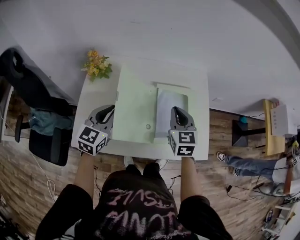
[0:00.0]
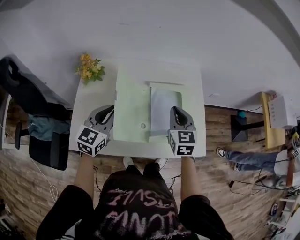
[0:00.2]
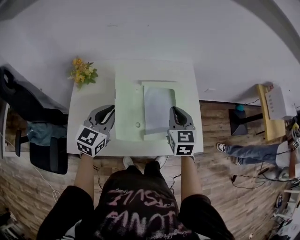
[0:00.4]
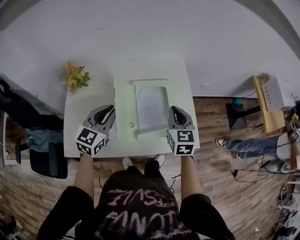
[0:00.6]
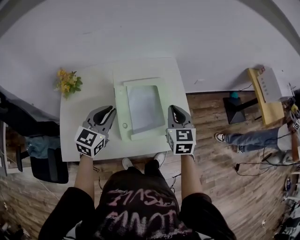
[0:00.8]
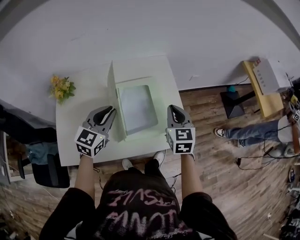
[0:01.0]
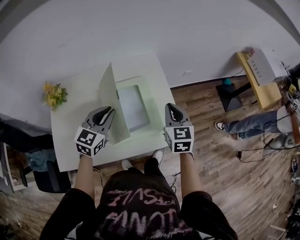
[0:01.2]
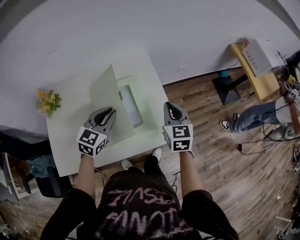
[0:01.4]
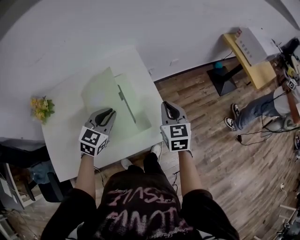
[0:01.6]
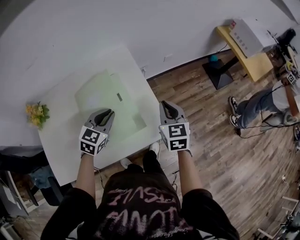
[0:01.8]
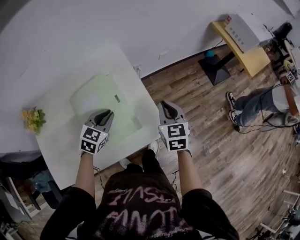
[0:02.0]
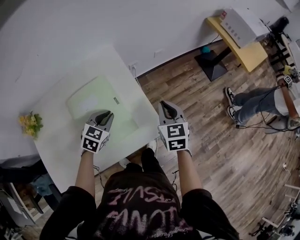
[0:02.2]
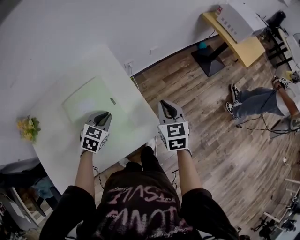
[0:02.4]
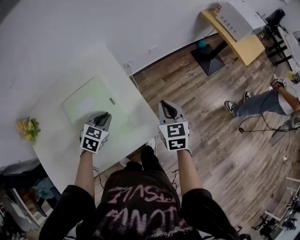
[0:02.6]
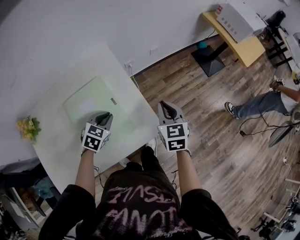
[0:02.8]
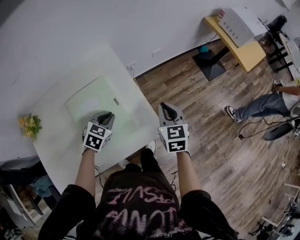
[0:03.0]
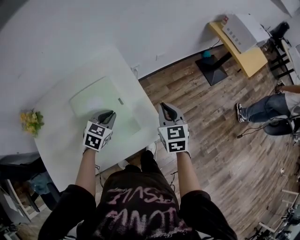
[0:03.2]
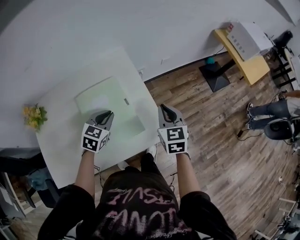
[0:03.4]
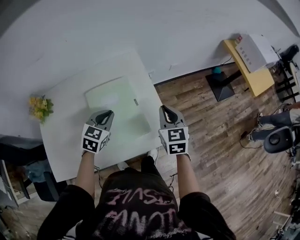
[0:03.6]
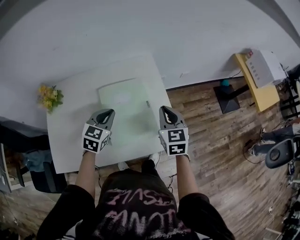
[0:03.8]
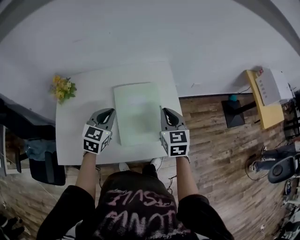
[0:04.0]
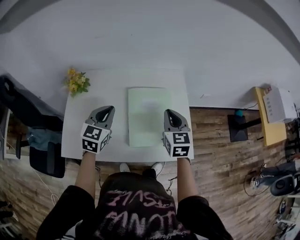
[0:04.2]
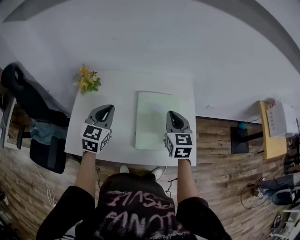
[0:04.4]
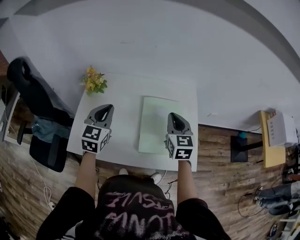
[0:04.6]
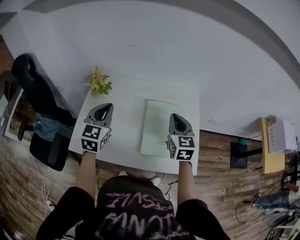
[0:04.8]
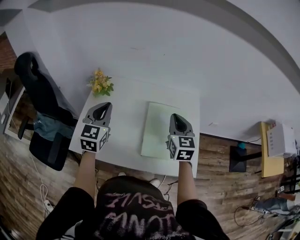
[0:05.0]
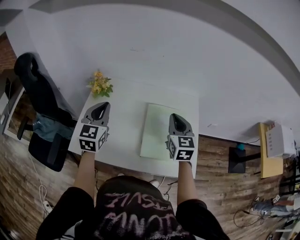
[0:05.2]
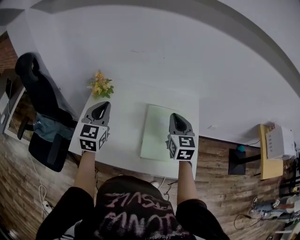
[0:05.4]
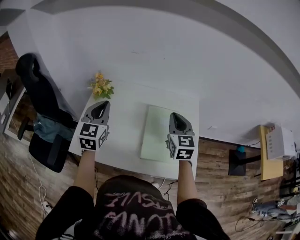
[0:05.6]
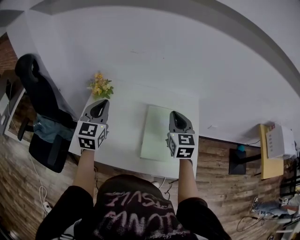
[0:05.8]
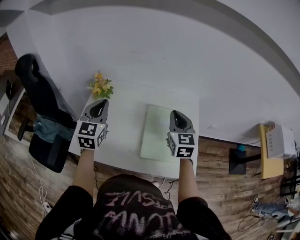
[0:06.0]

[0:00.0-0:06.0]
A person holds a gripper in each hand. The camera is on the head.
0.0 to 1.6 s: Both grippers move to the right, some 30 cm. The left gripper rotates some 30 degrees. Meanwhile the right gripper changes its angle by about 20 degrees.
1.6 to 3.0 s: The right gripper is displaced to the right by roughly 10 cm. The left gripper is displaced downward and to the right by some 10 cm, and rotates about 20 degrees.
3.0 to 4.4 s: The left gripper changes place by about 35 cm, and rotates about 50 degrees, while the right gripper shifts by some 30 cm, and rotates roughly 30 degrees.
4.4 to 6.0 s: The right gripper travels upward by about 5 cm. The left gripper heads to the left and upward, covering about 10 cm.

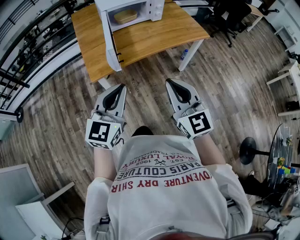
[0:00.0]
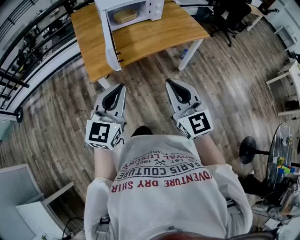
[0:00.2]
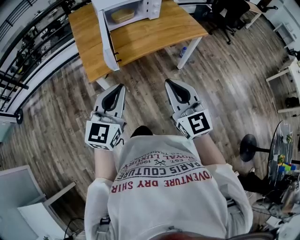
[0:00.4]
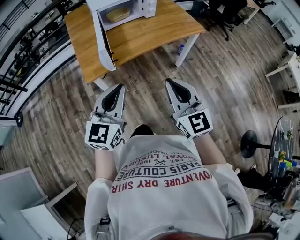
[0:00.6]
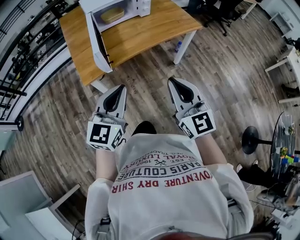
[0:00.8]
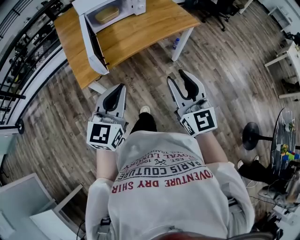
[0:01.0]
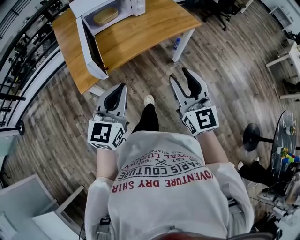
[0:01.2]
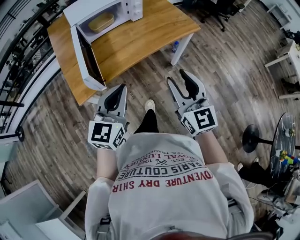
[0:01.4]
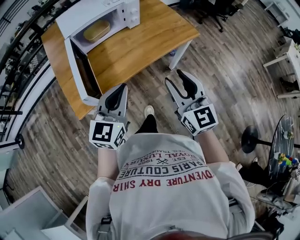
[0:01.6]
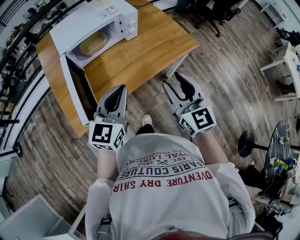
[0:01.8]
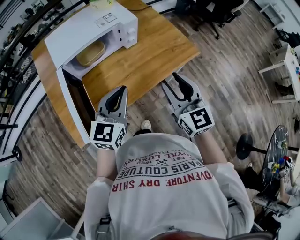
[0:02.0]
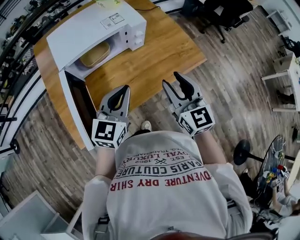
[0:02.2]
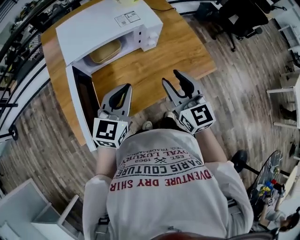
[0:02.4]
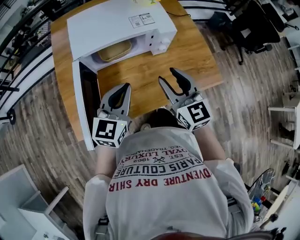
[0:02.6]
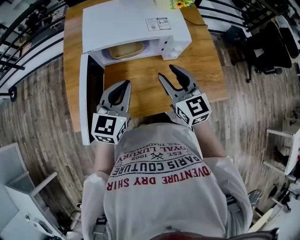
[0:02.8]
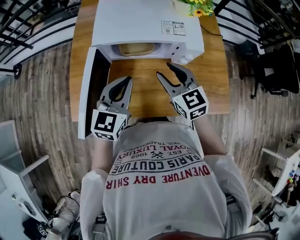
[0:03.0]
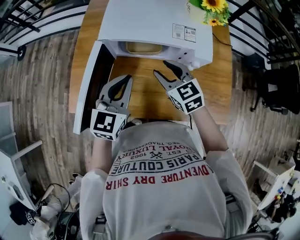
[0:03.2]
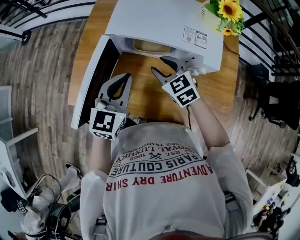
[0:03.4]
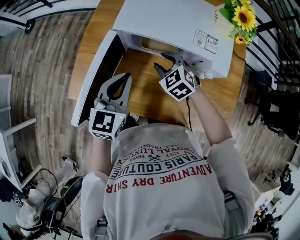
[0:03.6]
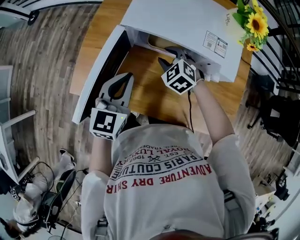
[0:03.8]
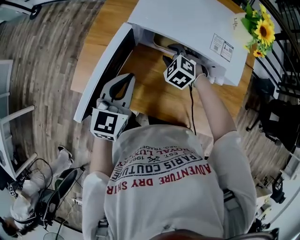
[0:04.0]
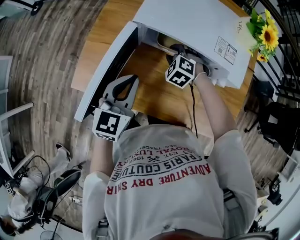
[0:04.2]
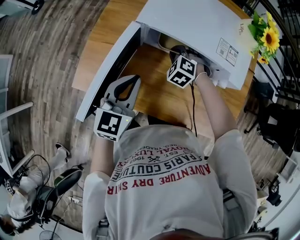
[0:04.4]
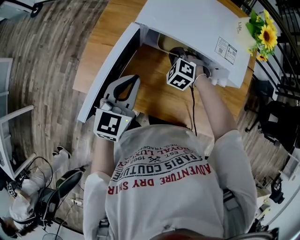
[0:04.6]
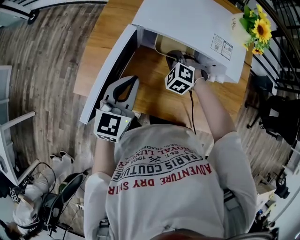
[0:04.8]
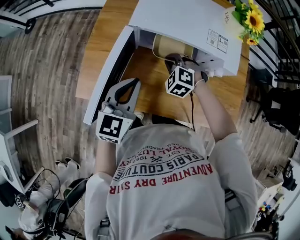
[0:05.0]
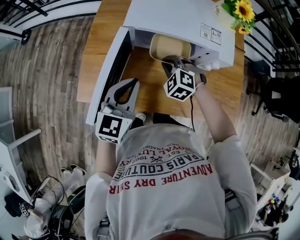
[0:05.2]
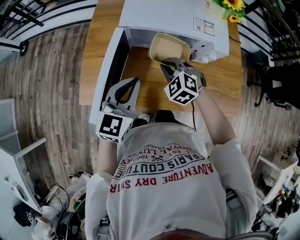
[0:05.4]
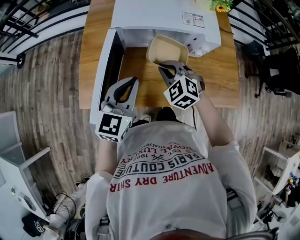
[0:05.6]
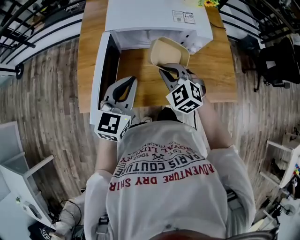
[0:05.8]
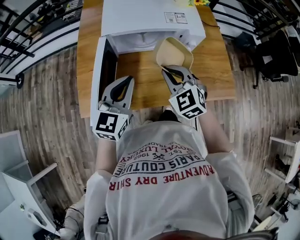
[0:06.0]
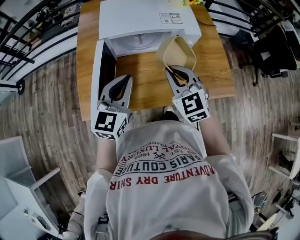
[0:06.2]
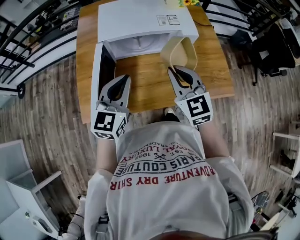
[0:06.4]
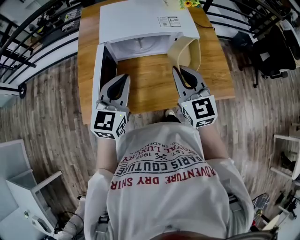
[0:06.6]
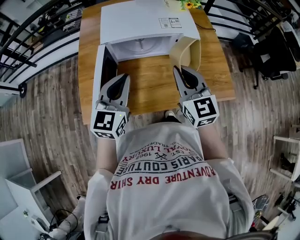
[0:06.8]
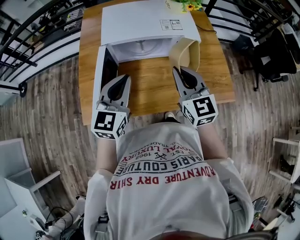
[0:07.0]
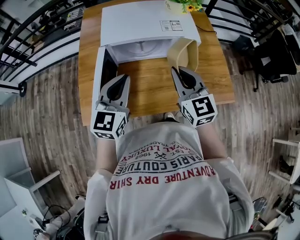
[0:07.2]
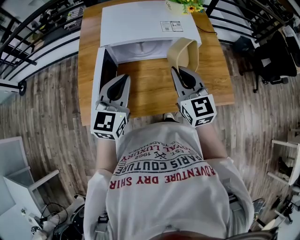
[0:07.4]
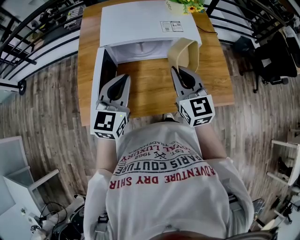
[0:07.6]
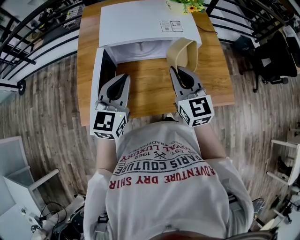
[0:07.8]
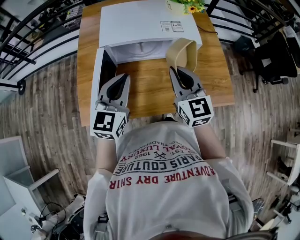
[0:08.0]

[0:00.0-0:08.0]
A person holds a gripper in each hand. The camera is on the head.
0.0 to 1.6 s: The right gripper shifts some 20 cm forward and to the right, and opens up, while the left gripper is displaced forward by roughly 20 cm.
1.6 to 3.2 s: The right gripper shifts by approximately 40 cm, and changes its angle by some 60 degrees. Meanwhile the left gripper moves some 30 cm, and turns by about 40 degrees.
3.2 to 4.8 s: The right gripper is displaced downward, forward and to the left by approximately 15 cm, rolls counterclockwise, seen from behind, by approximately 50 degrees, and closes its fingers. Meanwhile the left gripper is displaced to the left by roughly 5 cm.
4.8 to 6.4 s: The right gripper goes some 30 cm upward, backward and to the right, and angles its fingers upward, by roughly 40 degrees, while the left gripper travels upward by approximately 5 cm, and rotates some 20 degrees.
6.4 to 8.0 s: The grippers move only a little.

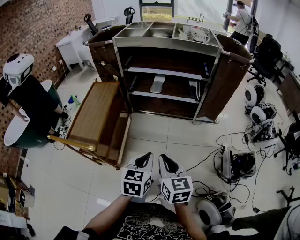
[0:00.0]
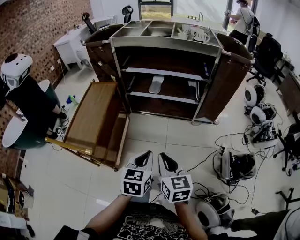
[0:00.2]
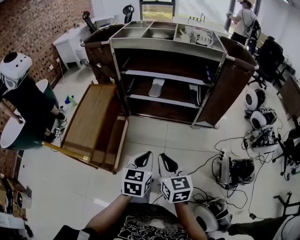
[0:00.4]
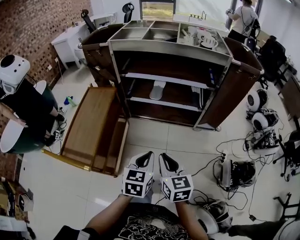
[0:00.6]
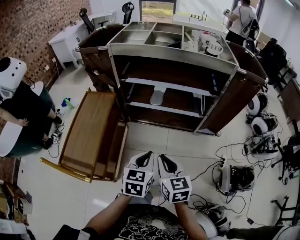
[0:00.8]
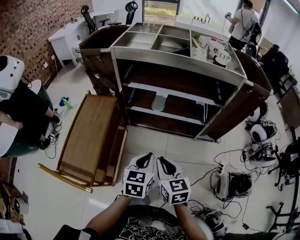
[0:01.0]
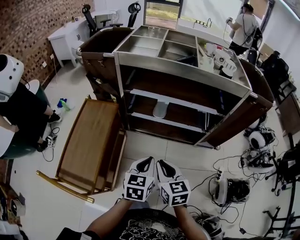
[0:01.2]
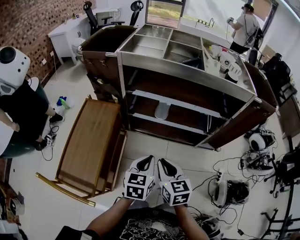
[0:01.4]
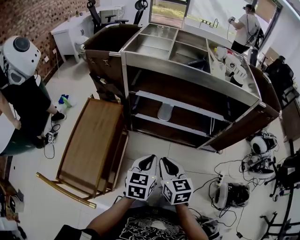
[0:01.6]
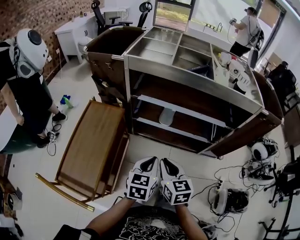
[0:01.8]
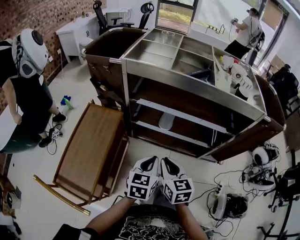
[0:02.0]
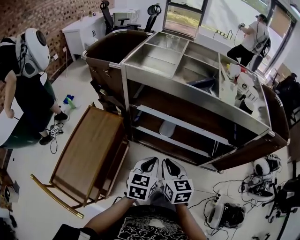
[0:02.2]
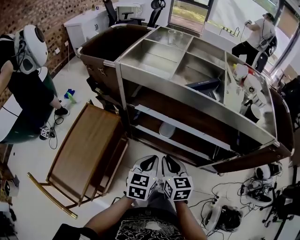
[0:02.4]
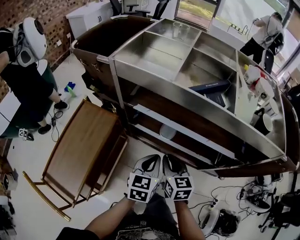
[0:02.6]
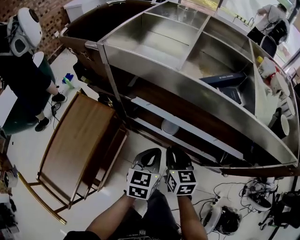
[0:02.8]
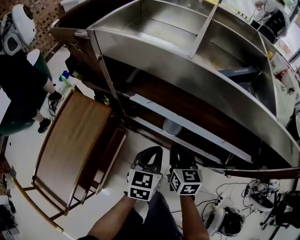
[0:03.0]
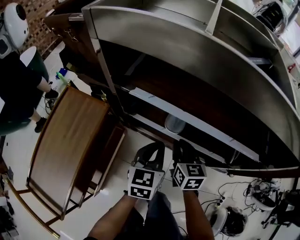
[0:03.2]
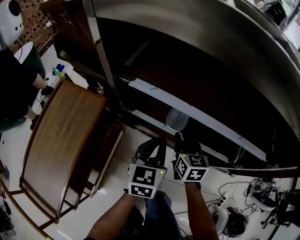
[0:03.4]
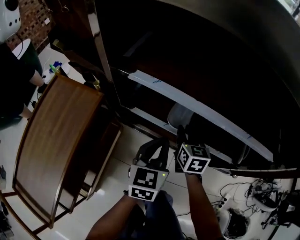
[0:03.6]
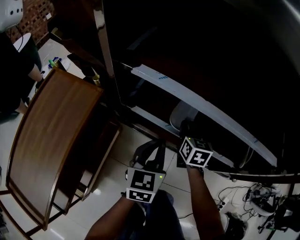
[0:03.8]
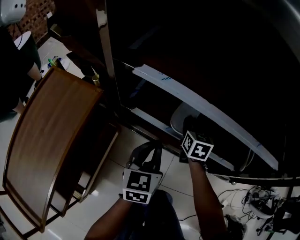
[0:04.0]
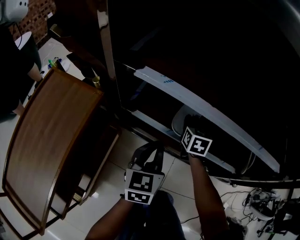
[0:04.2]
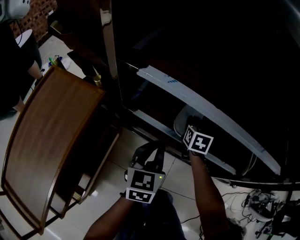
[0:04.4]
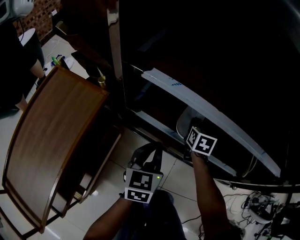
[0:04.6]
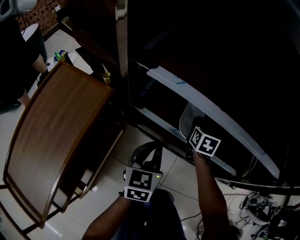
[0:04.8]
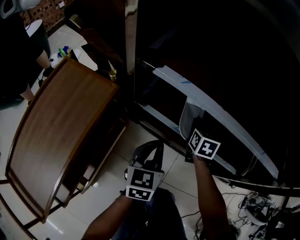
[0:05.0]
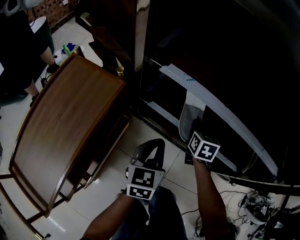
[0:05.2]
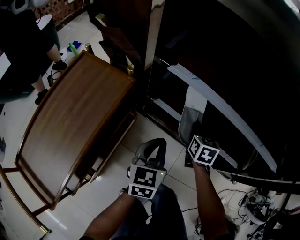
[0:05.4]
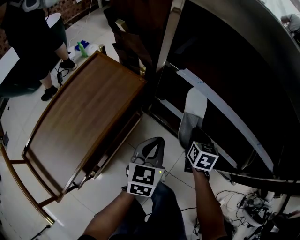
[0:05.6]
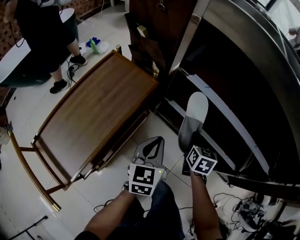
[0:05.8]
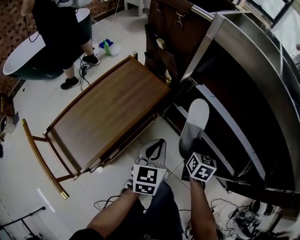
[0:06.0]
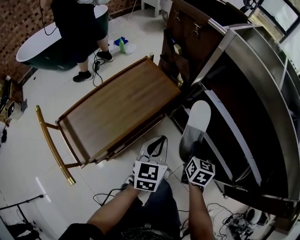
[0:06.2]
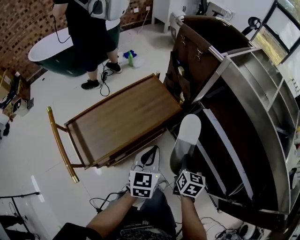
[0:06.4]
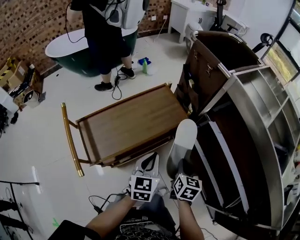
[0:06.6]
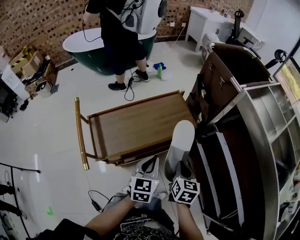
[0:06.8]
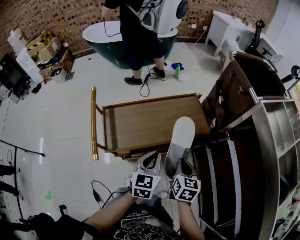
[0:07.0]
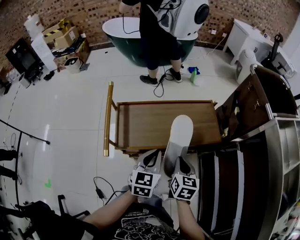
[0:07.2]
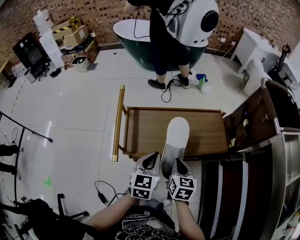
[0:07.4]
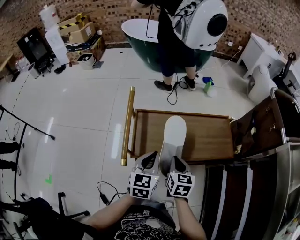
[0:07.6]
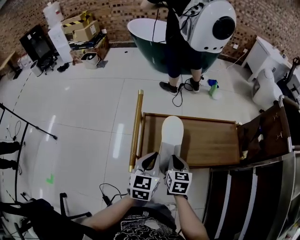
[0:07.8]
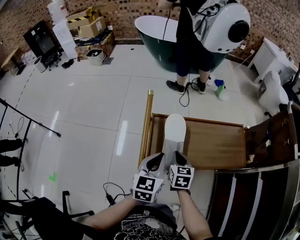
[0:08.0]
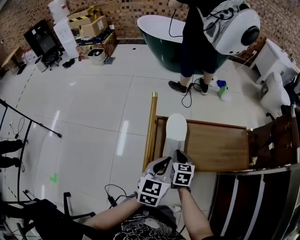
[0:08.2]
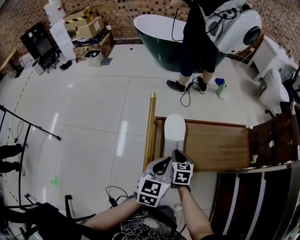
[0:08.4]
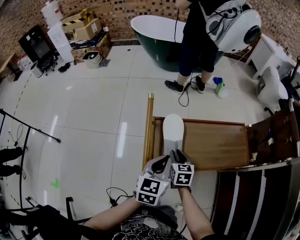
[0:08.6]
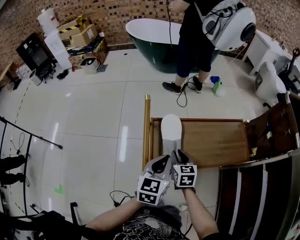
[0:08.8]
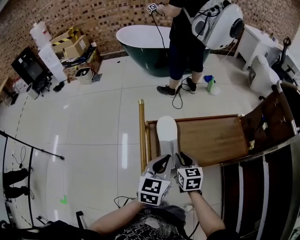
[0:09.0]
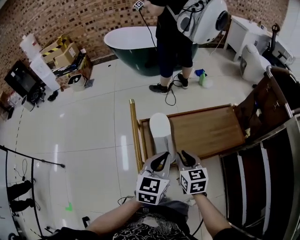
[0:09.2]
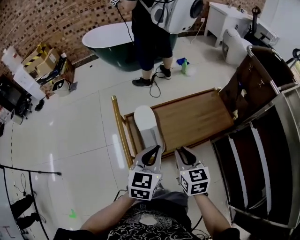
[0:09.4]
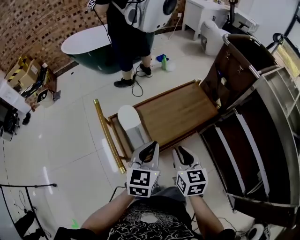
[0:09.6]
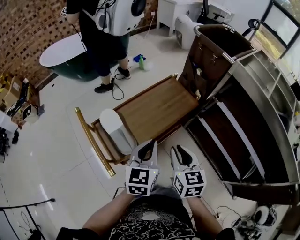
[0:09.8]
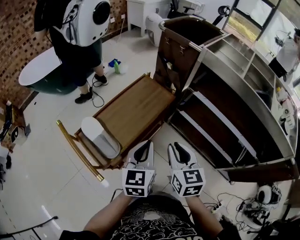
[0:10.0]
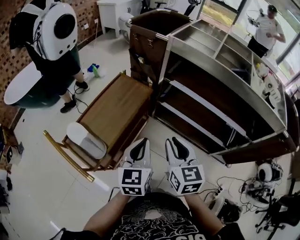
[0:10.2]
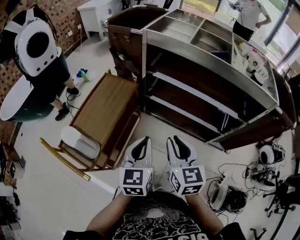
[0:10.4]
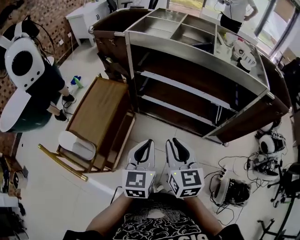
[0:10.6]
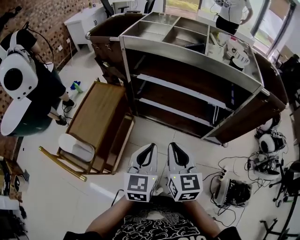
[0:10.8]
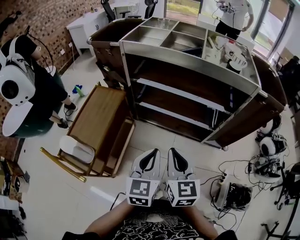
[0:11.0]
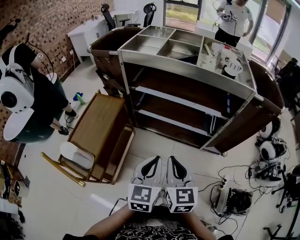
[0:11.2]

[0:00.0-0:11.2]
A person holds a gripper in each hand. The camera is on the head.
0.0 to 1.6 s: The two grippers go about 35 cm forward.
1.6 to 3.2 s: Both grippers travel together forward and downward, some 35 cm.
3.2 to 4.8 s: The right gripper travels forward and downward by about 20 cm, while the left gripper is displaced downward by roughly 15 cm.
4.8 to 6.4 s: The left gripper changes place by about 35 cm, and swivels roughly 30 degrees; the right gripper changes place by some 40 cm, and changes its angle by about 30 degrees.
6.4 to 8.0 s: The left gripper moves about 35 cm, and turns by roughly 40 degrees, while the right gripper moves some 40 cm, and turns by roughly 50 degrees.
8.0 to 9.6 s: The left gripper goes some 15 cm to the right and upward, and changes its angle by about 30 degrees. The right gripper shifts about 20 cm to the right, upward and backward, and changes its angle by roughly 20 degrees.
9.6 to 11.2 s: The left gripper ends up some 40 cm from where it was, and rotates some 50 degrees; the right gripper ends up approximately 40 cm from where it was, and rotates about 50 degrees.
